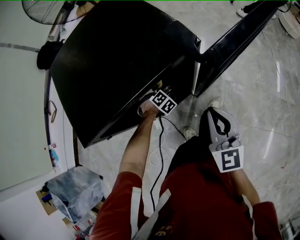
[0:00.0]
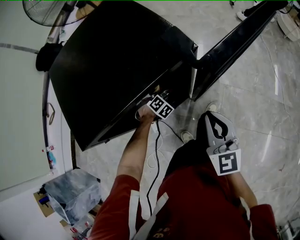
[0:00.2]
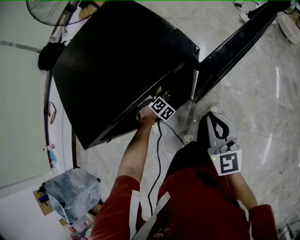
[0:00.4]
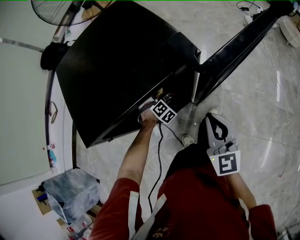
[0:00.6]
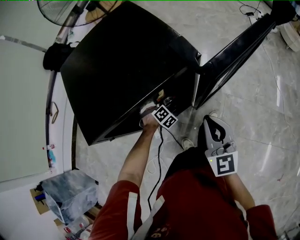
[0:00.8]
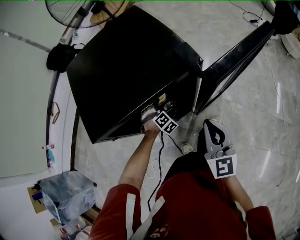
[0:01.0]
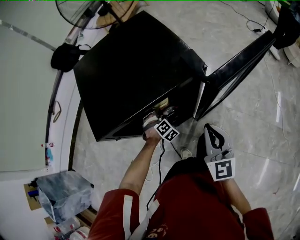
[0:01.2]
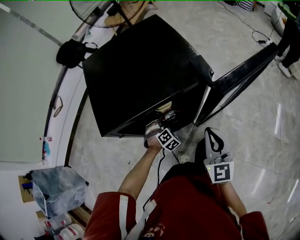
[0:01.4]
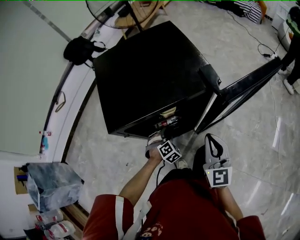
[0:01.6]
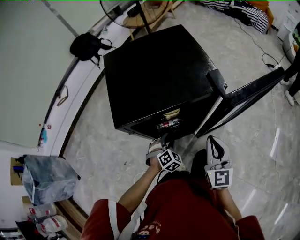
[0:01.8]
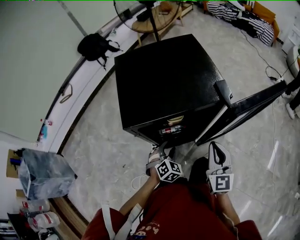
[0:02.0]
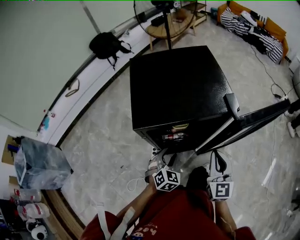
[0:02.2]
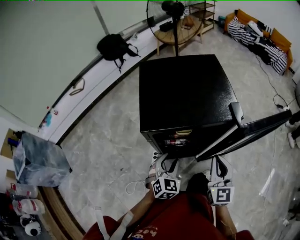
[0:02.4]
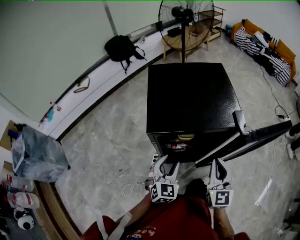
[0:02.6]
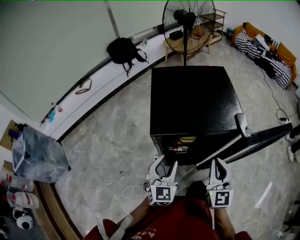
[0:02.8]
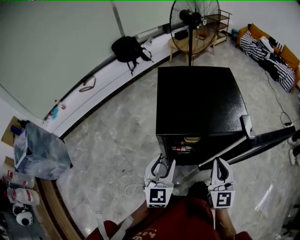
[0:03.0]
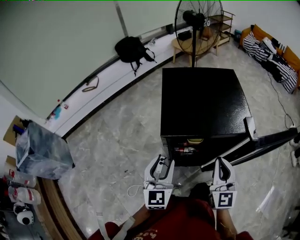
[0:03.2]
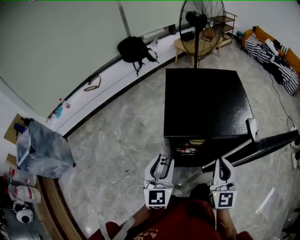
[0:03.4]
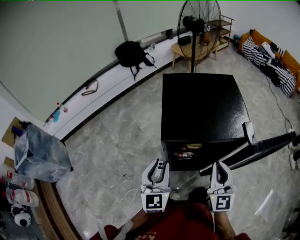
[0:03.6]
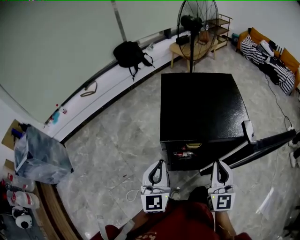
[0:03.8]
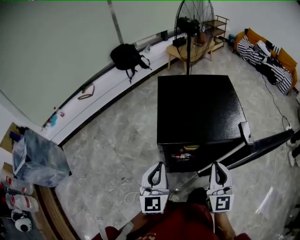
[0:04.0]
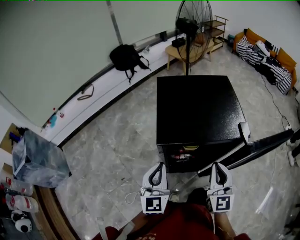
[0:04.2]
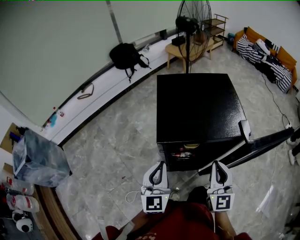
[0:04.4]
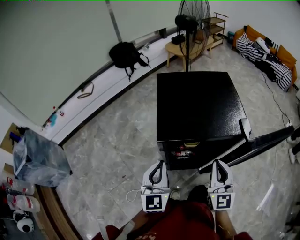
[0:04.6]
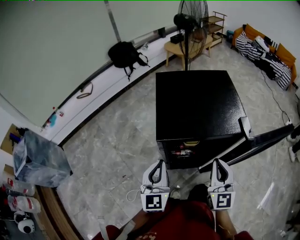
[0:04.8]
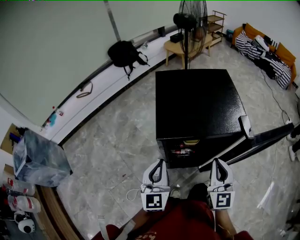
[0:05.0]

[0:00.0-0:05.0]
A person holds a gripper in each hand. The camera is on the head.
0.0 to 1.6 s: The left gripper is displaced backward and upward by some 15 cm, and opens up.
1.6 to 3.4 s: The right gripper shifts about 15 cm to the left and upward. The left gripper heads upward and to the left, covering some 35 cm, and angles its fingers upward, by about 50 degrees.
3.4 to 5.0 s: The left gripper closes up.

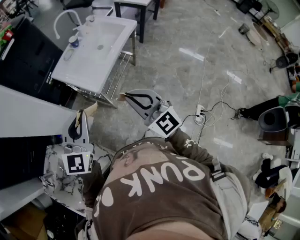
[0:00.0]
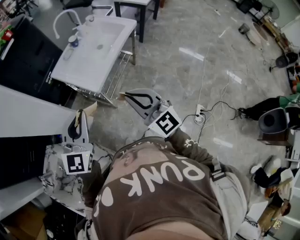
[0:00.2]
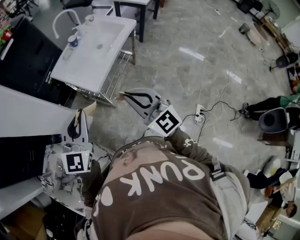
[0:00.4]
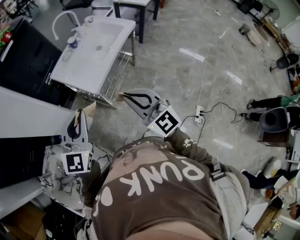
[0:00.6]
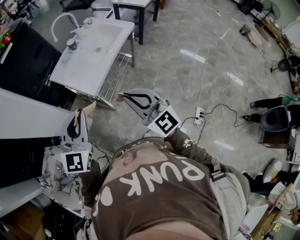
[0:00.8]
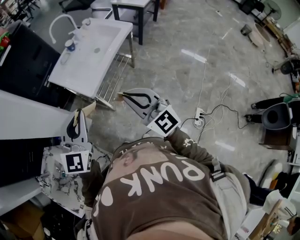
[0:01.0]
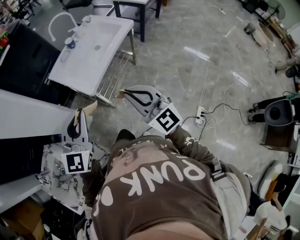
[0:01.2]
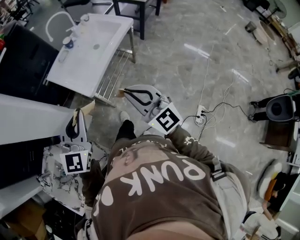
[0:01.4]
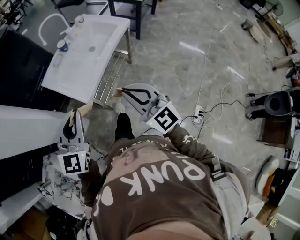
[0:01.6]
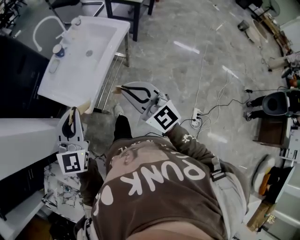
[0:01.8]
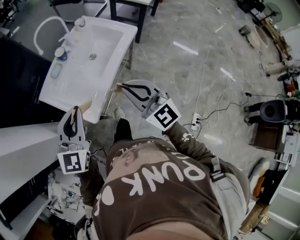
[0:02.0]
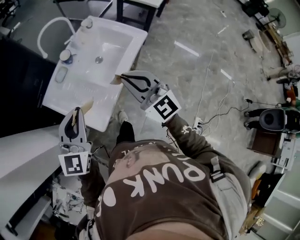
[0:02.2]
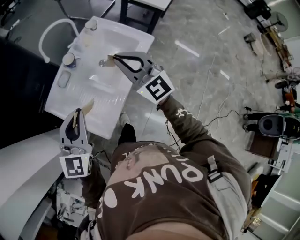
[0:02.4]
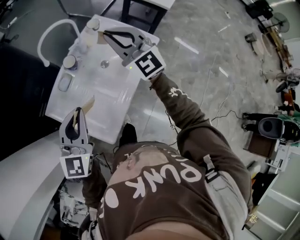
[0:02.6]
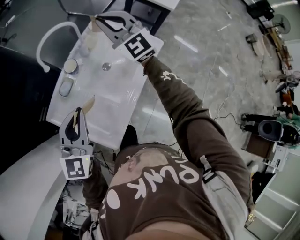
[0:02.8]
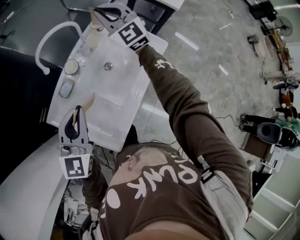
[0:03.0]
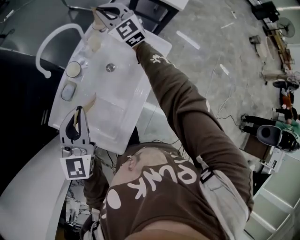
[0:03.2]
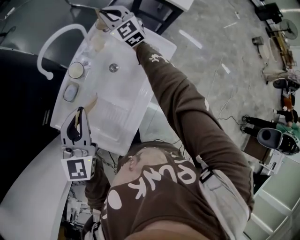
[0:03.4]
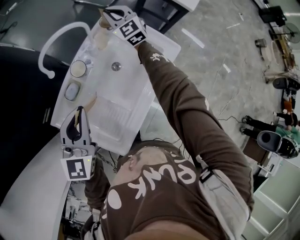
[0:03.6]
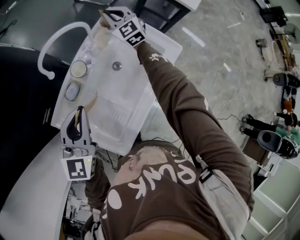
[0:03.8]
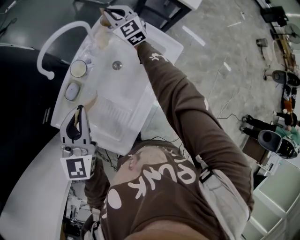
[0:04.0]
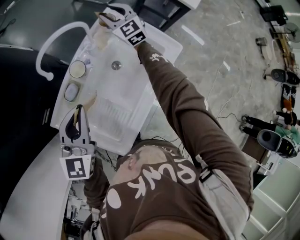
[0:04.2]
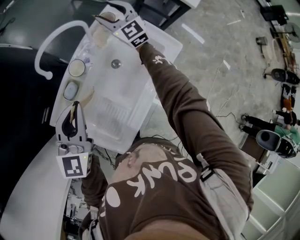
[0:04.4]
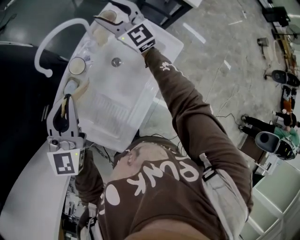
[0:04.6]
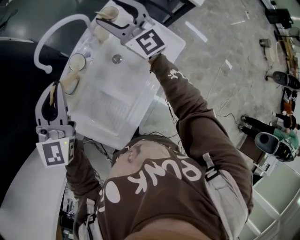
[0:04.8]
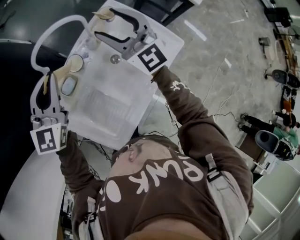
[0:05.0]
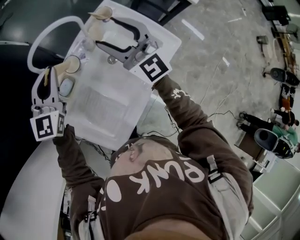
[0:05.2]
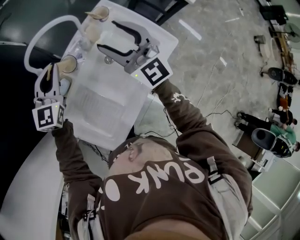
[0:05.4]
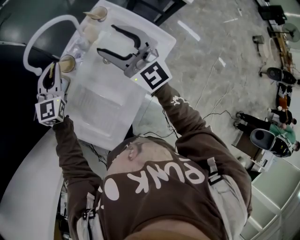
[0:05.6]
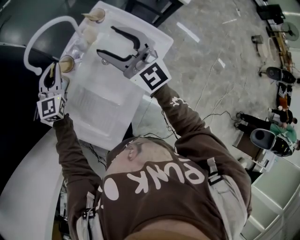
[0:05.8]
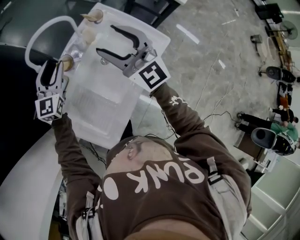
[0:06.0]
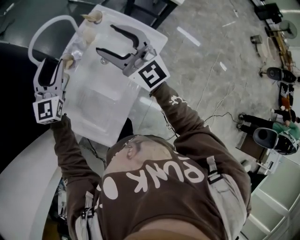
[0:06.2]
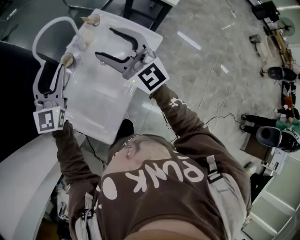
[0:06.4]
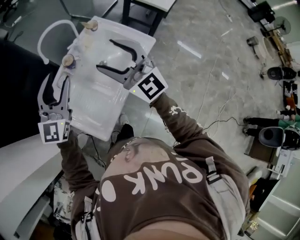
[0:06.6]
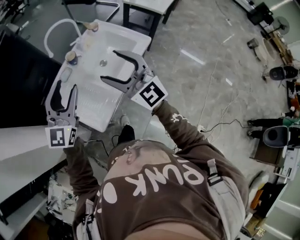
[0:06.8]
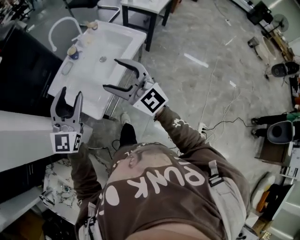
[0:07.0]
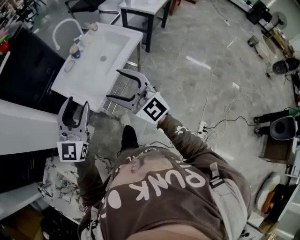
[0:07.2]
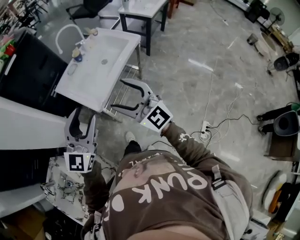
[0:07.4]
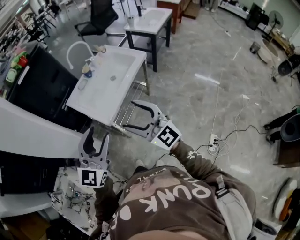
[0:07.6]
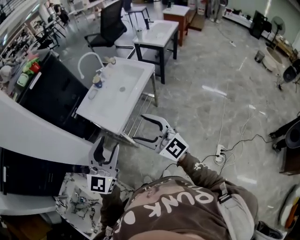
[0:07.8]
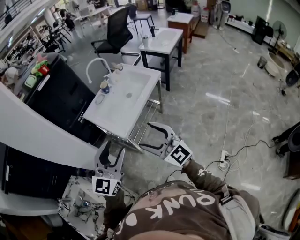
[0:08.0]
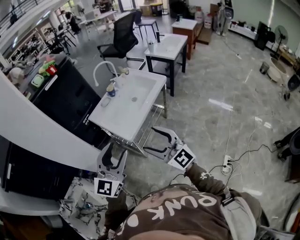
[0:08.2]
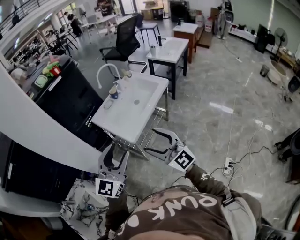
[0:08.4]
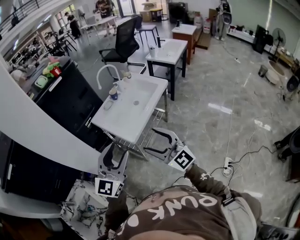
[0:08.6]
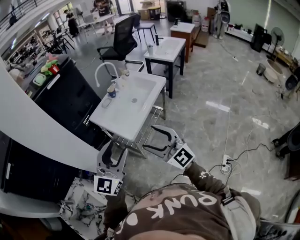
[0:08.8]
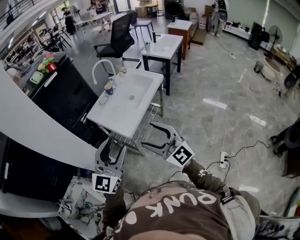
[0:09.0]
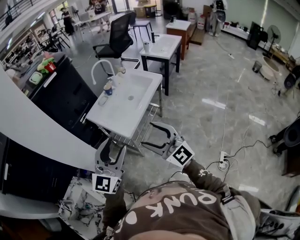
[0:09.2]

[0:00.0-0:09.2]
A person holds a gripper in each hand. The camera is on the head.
0.0 to 1.6 s: The left gripper is displaced forward and to the right by some 10 cm. Meanwhile the right gripper is displaced to the right and forward by about 10 cm.
1.6 to 3.0 s: Both grippers are carried forward, some 60 cm.
3.0 to 4.6 s: The right gripper travels downward and forward by roughly 10 cm, and opens up, while the left gripper shifts approximately 10 cm forward.
4.6 to 6.2 s: The right gripper moves backward and upward, approximately 20 cm. Meanwhile the left gripper is displaced forward by about 5 cm, goes downward and returns, about 15 cm each way, and opens up.
6.2 to 7.6 s: The pair of grippers is taken backward, roughly 60 cm.
7.6 to 9.2 s: The right gripper goes some 10 cm to the left and backward; the left gripper is displaced to the left by roughly 5 cm.

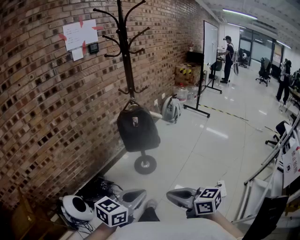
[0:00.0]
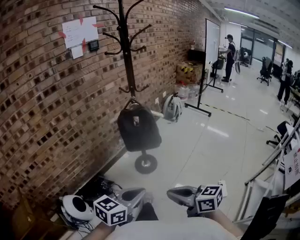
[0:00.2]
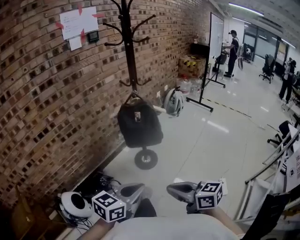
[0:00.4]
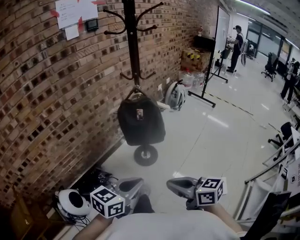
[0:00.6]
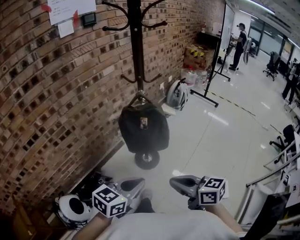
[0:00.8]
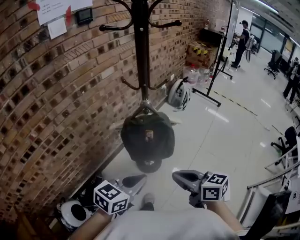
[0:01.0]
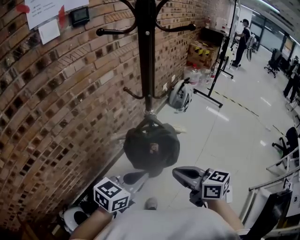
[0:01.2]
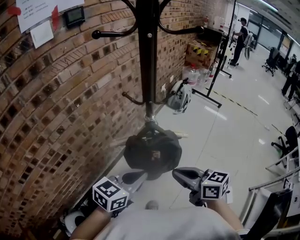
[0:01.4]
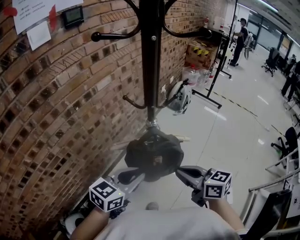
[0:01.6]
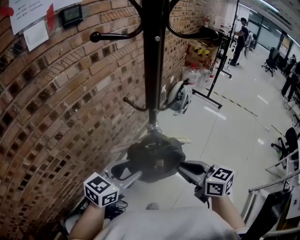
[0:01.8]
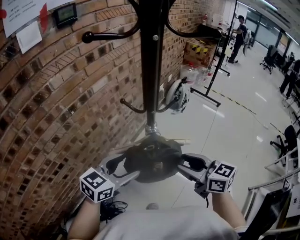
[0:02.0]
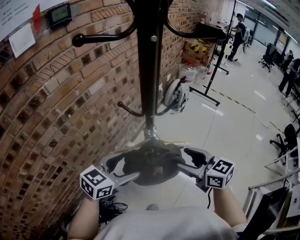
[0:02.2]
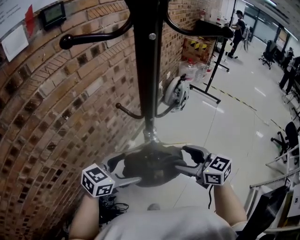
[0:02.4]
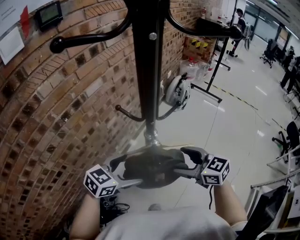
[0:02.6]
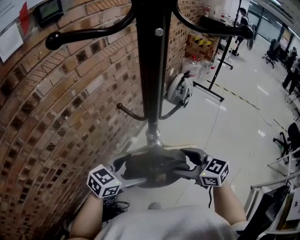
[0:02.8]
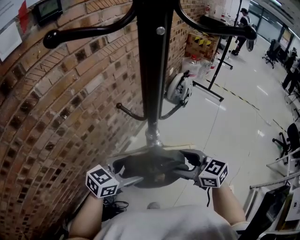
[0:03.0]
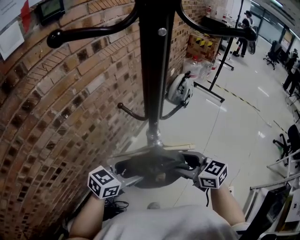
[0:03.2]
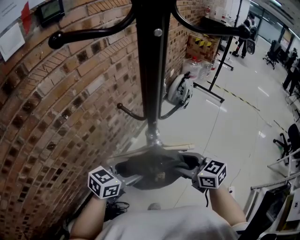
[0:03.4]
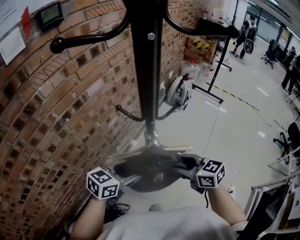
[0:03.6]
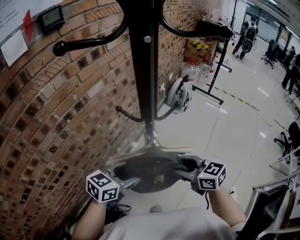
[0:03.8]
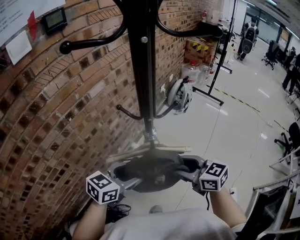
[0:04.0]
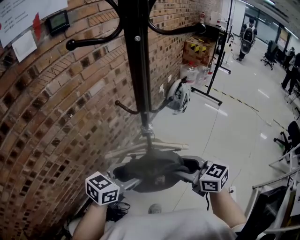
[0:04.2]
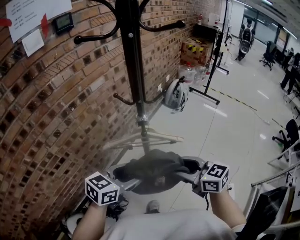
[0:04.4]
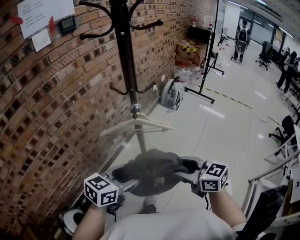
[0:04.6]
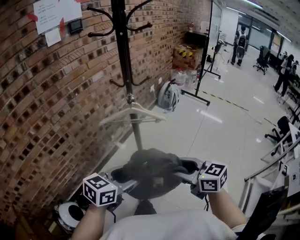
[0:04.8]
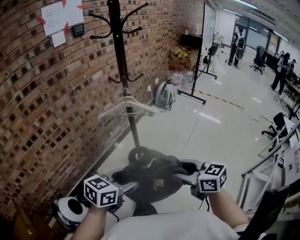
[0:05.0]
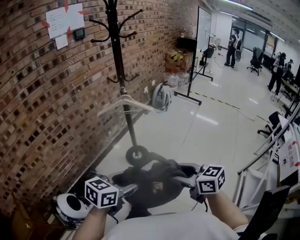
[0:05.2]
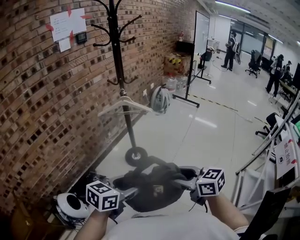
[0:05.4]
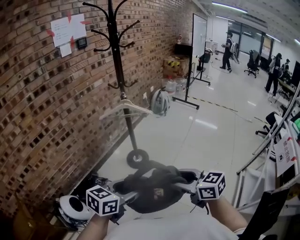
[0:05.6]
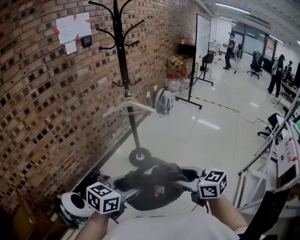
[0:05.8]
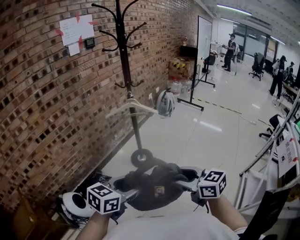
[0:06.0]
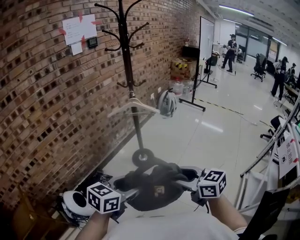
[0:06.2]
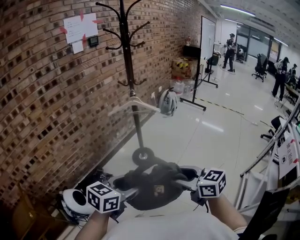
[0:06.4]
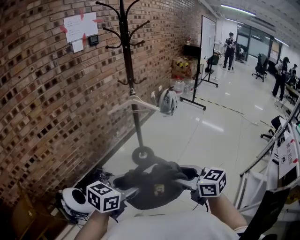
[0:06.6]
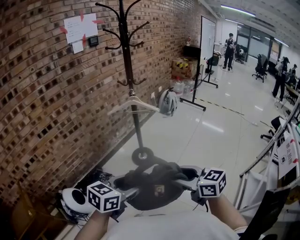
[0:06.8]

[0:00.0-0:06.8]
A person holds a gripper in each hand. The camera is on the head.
0.0 to 1.4 s: Both grippers are carried forward, some 40 cm.
1.4 to 2.8 s: The left gripper goes approximately 15 cm forward and downward, and opens its fingers. The right gripper heads forward, covering about 15 cm, changes its angle by some 20 degrees, and opens.
2.8 to 4.0 s: The left gripper closes its fingers. Meanwhile the right gripper closes up.
4.0 to 5.4 s: The pair of grippers is taken backward, some 50 cm.
5.4 to 6.8 s: The right gripper shifts by some 5 cm; the left gripper moves backward, about 5 cm.

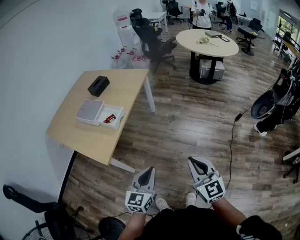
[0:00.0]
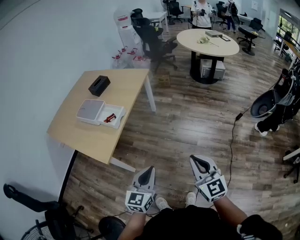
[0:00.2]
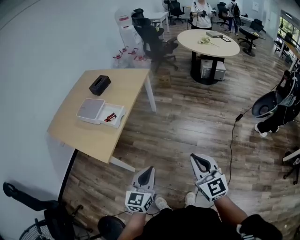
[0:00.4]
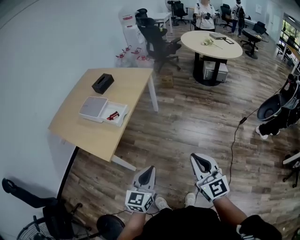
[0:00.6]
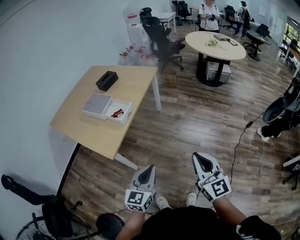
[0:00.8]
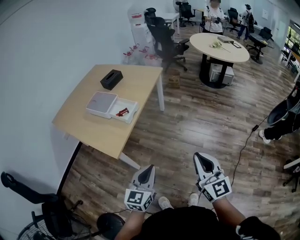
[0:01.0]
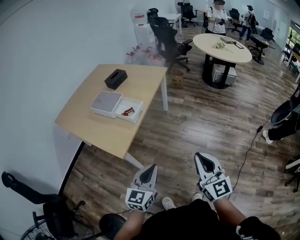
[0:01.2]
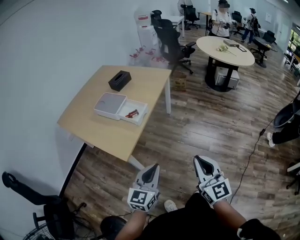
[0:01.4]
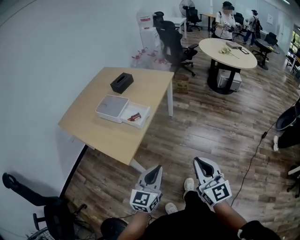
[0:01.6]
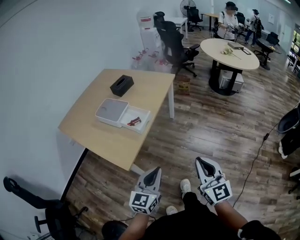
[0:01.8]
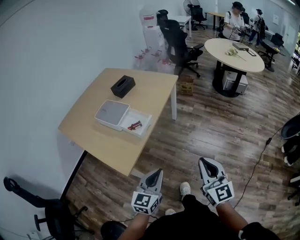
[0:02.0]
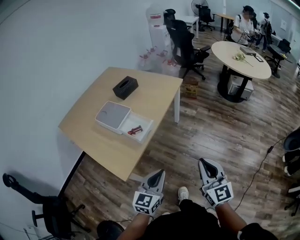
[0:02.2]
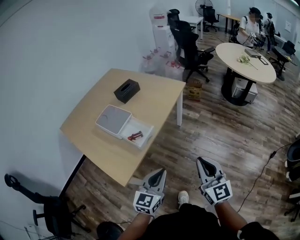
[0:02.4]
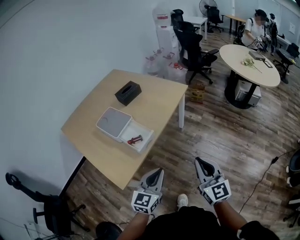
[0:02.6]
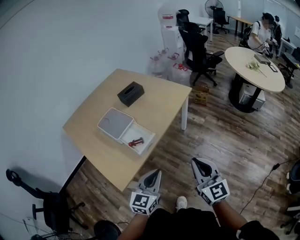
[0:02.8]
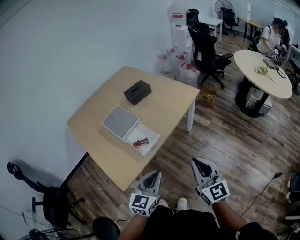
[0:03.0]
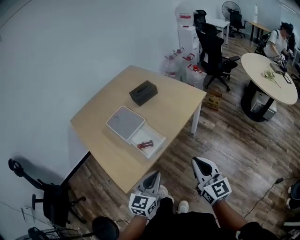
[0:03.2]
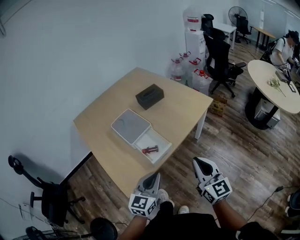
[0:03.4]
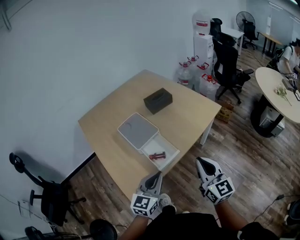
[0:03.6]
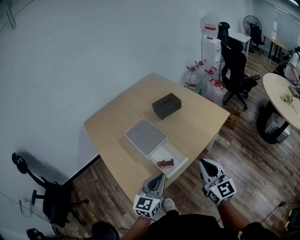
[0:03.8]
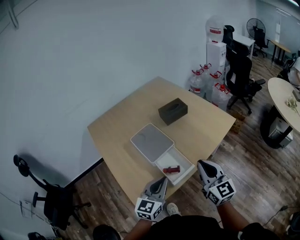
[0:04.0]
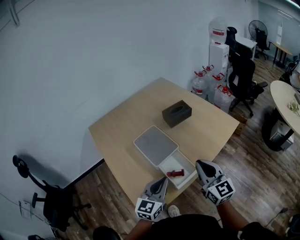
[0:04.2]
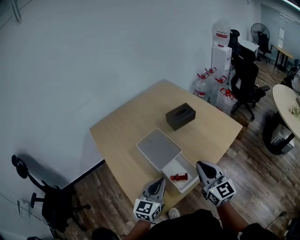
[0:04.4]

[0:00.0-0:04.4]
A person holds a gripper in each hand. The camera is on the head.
0.0 to 1.4 s: The two grippers go roughly 10 cm to the left.
1.4 to 3.0 s: Both grippers move forward, about 30 cm.
3.0 to 4.4 s: Both grippers travel together forward and to the left, some 30 cm.
